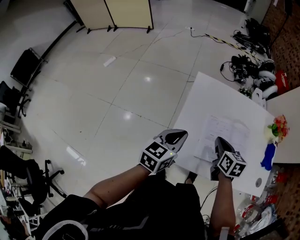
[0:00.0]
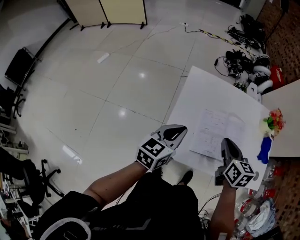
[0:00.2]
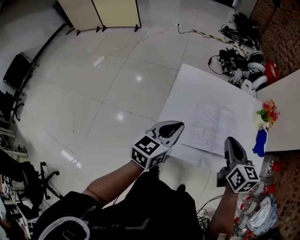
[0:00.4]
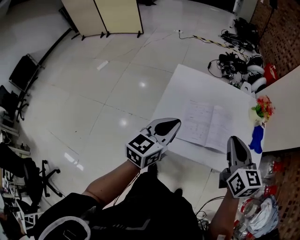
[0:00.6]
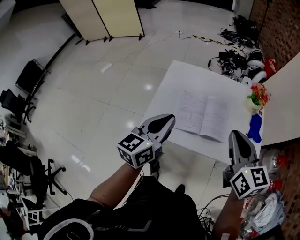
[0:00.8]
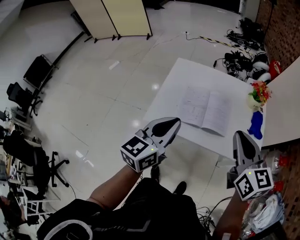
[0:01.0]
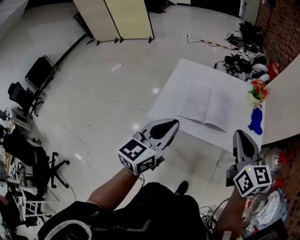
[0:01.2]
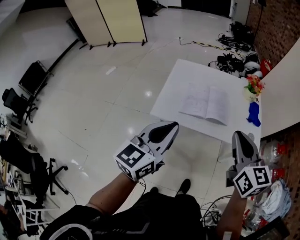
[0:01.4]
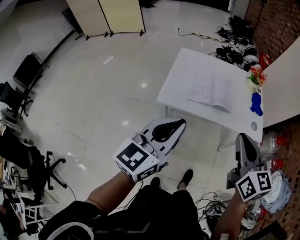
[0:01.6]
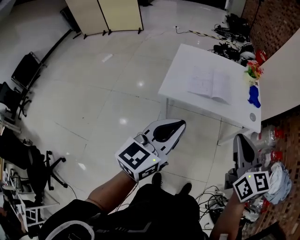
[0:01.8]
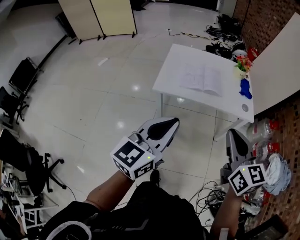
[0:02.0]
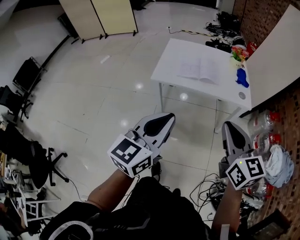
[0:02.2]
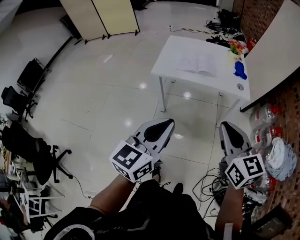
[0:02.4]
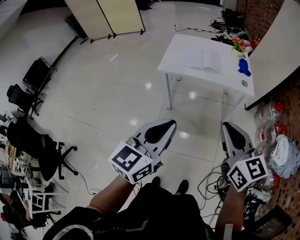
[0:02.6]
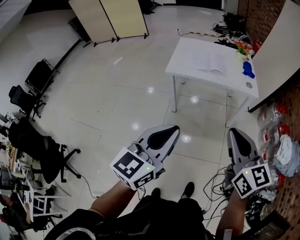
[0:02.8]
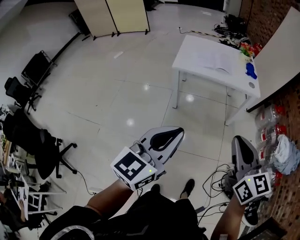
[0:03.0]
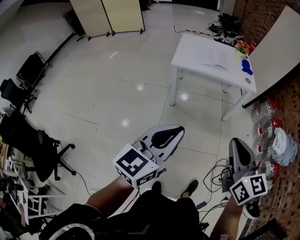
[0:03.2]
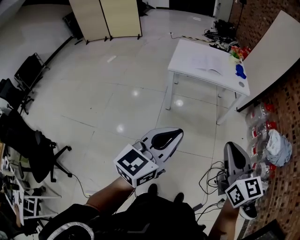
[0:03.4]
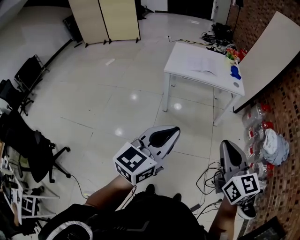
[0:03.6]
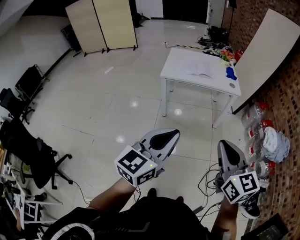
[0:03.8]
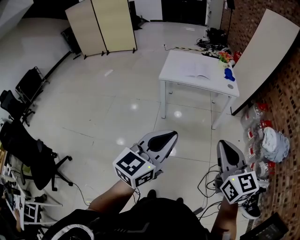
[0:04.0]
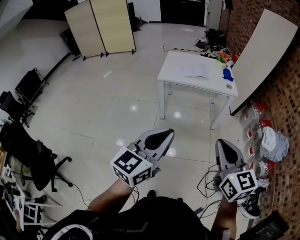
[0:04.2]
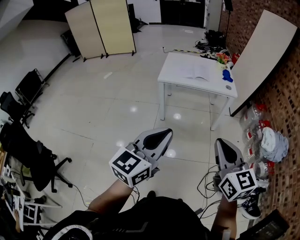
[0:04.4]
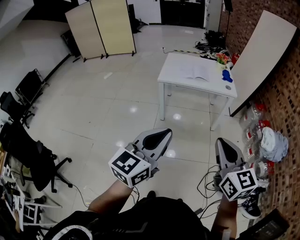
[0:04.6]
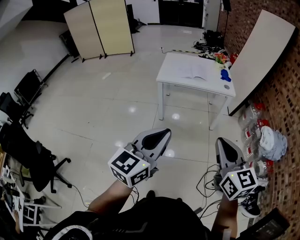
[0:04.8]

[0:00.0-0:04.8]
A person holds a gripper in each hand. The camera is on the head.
0:00.0 to 0:01.6: The right gripper is displaced backward, upward and to the right by some 50 cm, and swivels some 30 degrees. Meanwhile the left gripper moves backward and upward, some 40 cm, and turns by approximately 20 degrees.
0:01.6 to 0:03.2: Both grippers are carried backward, about 50 cm.
0:03.2 to 0:04.8: Both grippers move backward and to the right, approximately 10 cm.

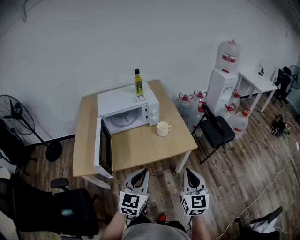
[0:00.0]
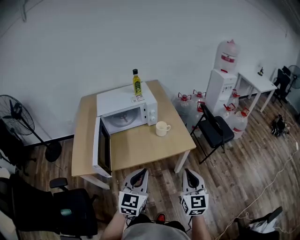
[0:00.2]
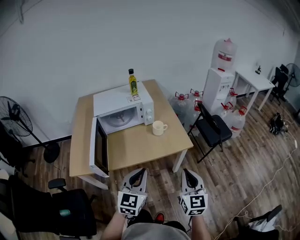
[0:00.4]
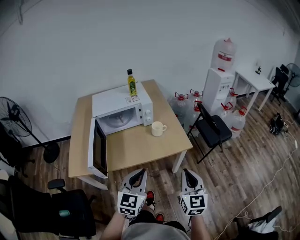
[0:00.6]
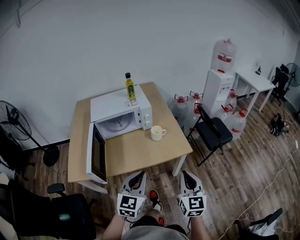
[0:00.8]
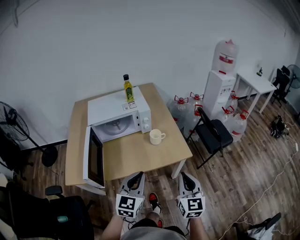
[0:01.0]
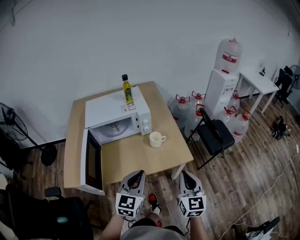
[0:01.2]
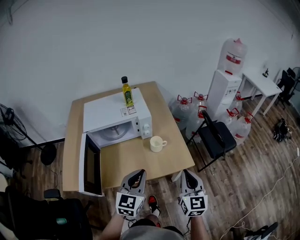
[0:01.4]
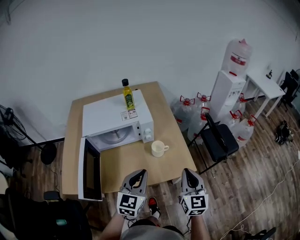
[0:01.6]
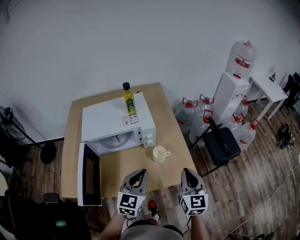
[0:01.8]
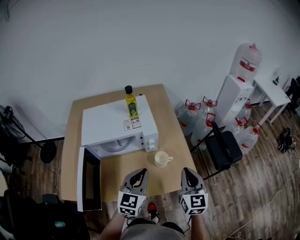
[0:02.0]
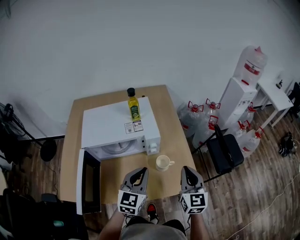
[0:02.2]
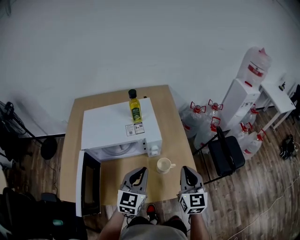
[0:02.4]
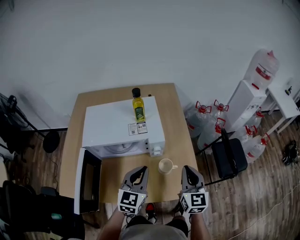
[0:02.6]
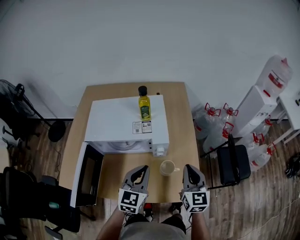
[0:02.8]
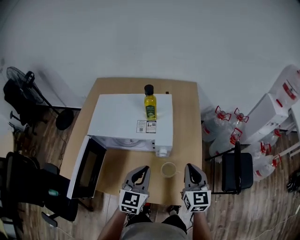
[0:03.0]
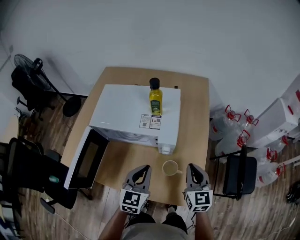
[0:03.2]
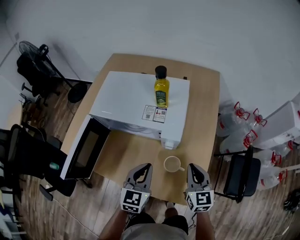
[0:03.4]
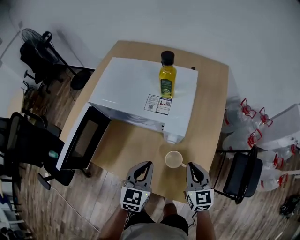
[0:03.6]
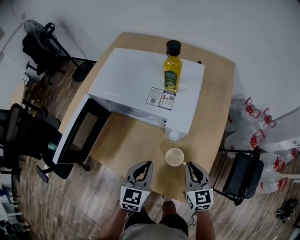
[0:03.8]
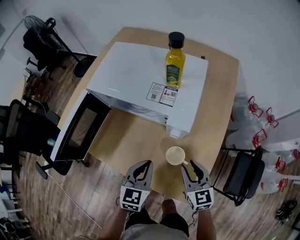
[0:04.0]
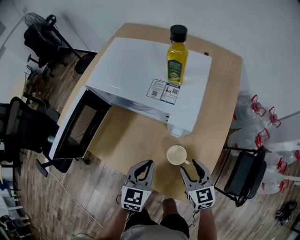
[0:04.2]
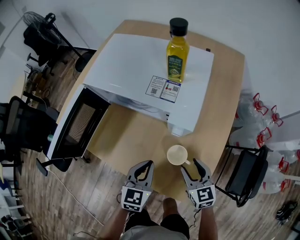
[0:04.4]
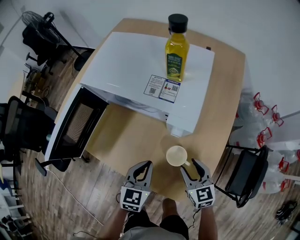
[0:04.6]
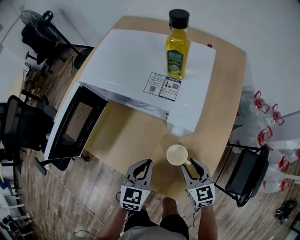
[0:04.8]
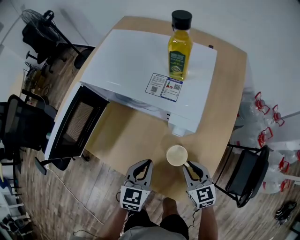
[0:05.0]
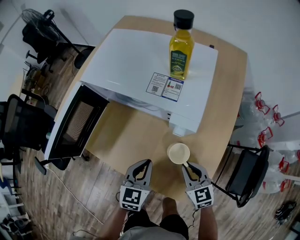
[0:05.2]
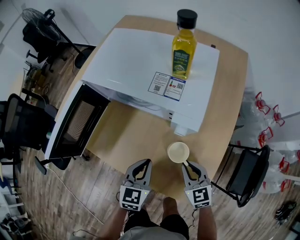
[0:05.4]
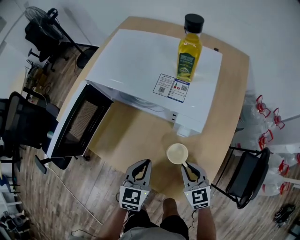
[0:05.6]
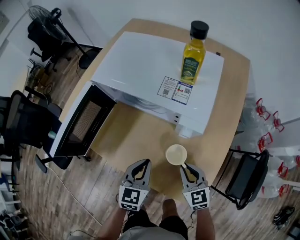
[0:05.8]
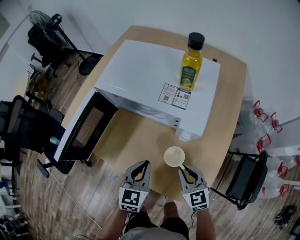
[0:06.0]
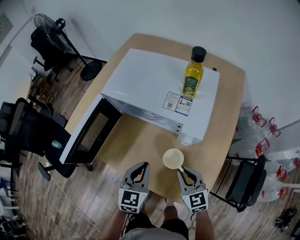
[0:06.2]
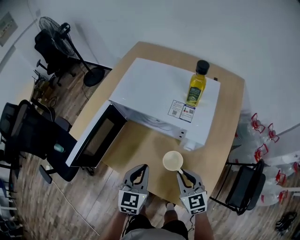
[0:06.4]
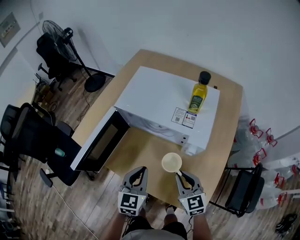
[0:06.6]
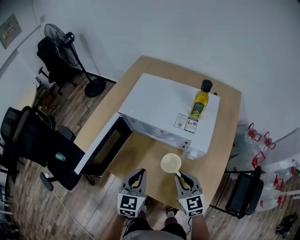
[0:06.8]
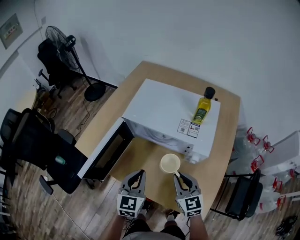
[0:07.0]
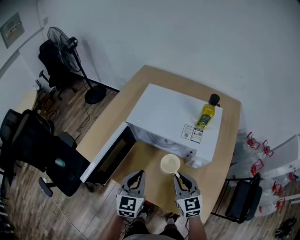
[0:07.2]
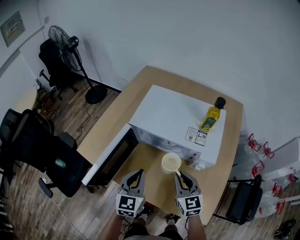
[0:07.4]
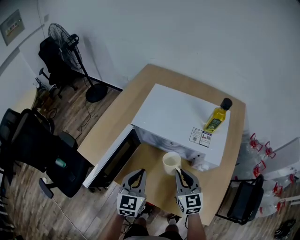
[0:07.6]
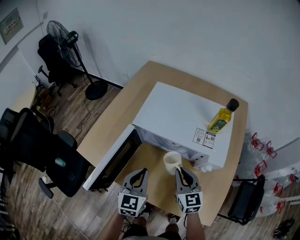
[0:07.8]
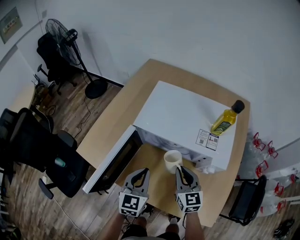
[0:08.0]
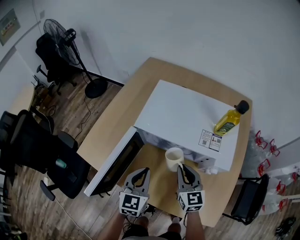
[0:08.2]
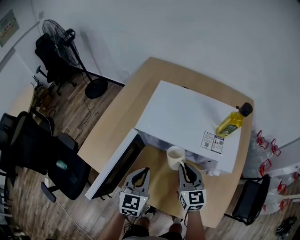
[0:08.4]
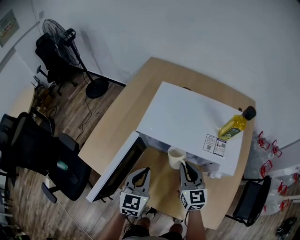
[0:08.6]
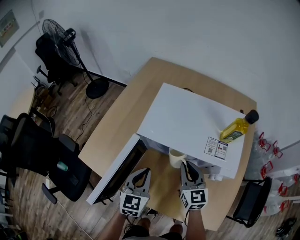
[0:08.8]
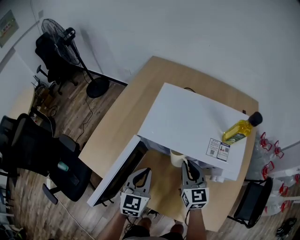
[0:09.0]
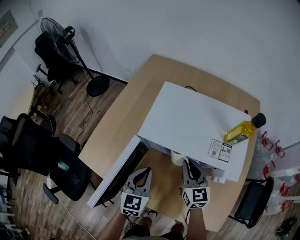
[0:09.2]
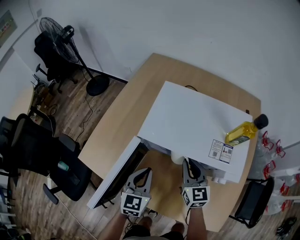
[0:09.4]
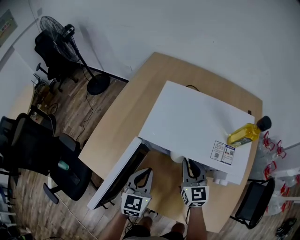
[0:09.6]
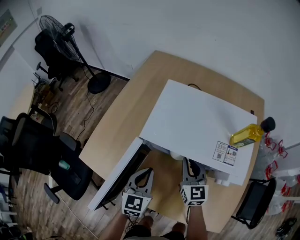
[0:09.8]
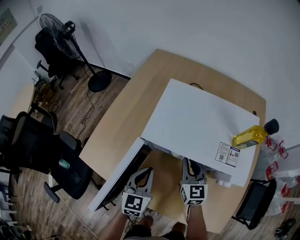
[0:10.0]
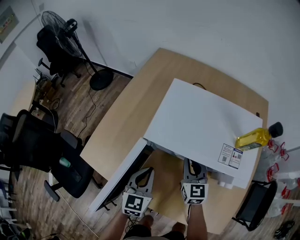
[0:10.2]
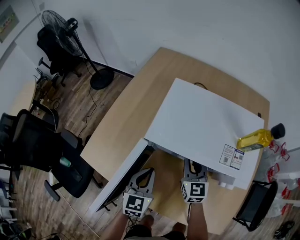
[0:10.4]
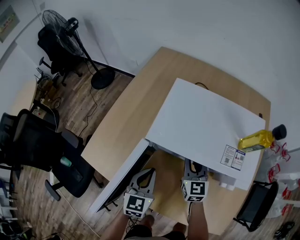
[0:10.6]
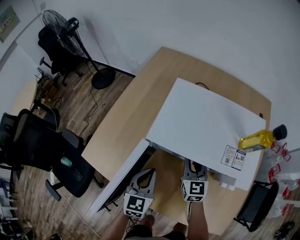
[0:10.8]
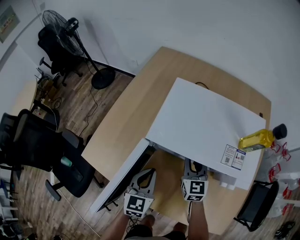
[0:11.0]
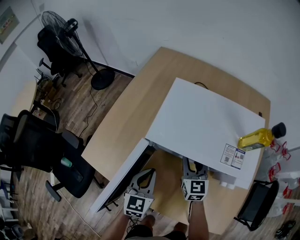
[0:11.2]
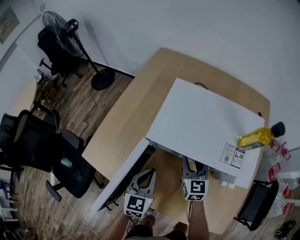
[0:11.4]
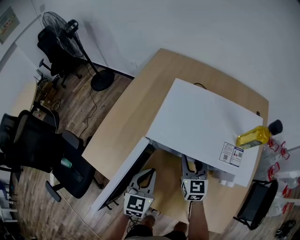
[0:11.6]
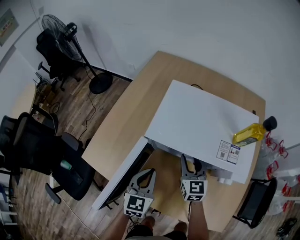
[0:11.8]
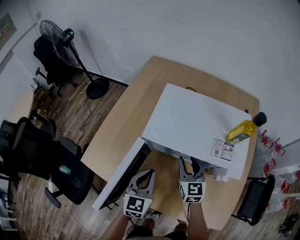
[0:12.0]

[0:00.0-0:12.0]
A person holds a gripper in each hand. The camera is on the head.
0:00.0 to 0:01.6: Both grippers move forward, approximately 20 cm.
0:01.6 to 0:03.0: Both grippers move forward, approximately 20 cm. The left gripper swivels about 20 degrees, while the right gripper changes its angle by roughly 20 degrees.
0:03.0 to 0:04.4: Both grippers travel together downward, approximately 20 cm. The left gripper rotates roughly 20 degrees. Meanwhile the right gripper changes its angle by approximately 40 degrees, and opens up.
0:04.4 to 0:06.0: The left gripper changes place by roughly 5 cm; the right gripper is displaced to the left by about 5 cm, and closes up.
0:06.0 to 0:07.6: The right gripper heads to the left, forward and upward, covering roughly 20 cm; the left gripper shifts some 20 cm to the left, upward and forward.
0:07.6 to 0:09.0: Both grippers move forward, roughly 10 cm.
0:09.0 to 0:10.4: The right gripper travels forward by some 5 cm.
0:10.4 to 0:12.0: The right gripper opens up.

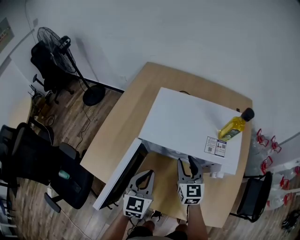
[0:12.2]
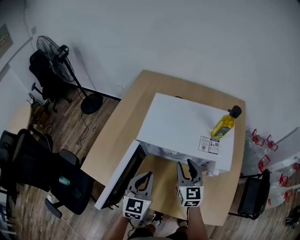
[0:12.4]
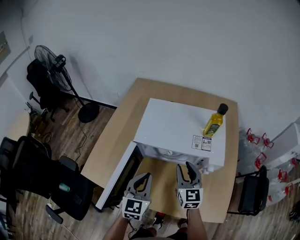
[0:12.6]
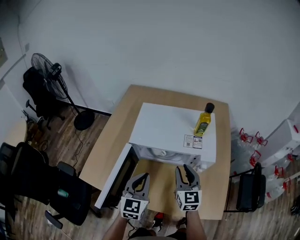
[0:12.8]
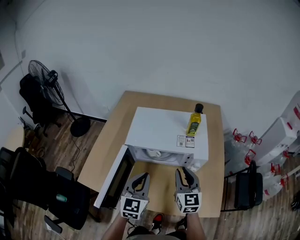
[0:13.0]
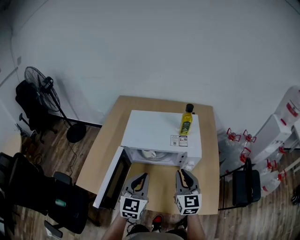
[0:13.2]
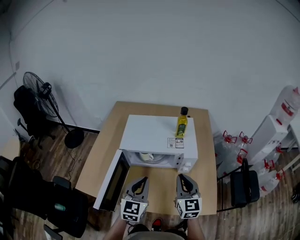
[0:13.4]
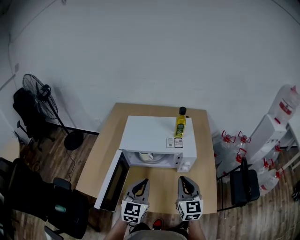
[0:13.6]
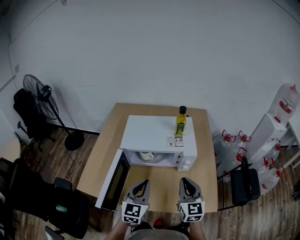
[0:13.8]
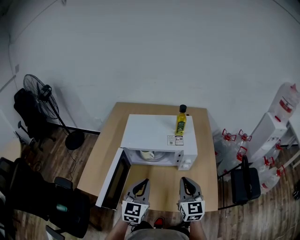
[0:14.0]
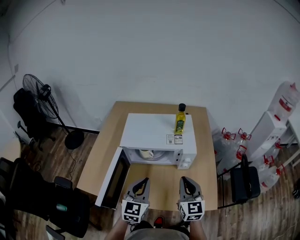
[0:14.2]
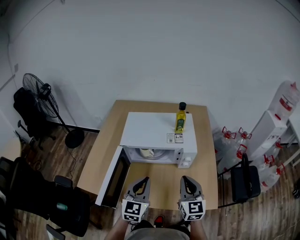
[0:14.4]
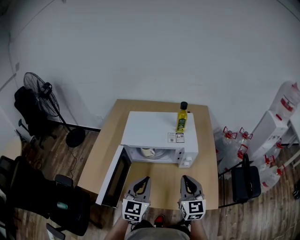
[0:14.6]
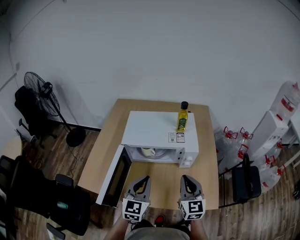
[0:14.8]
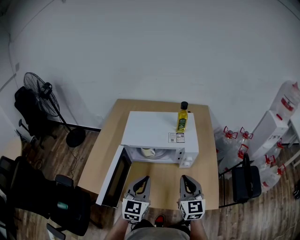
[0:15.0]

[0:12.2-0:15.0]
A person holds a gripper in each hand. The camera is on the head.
0:12.2 to 0:13.6: The left gripper heads upward, backward and to the right, covering about 15 cm; the right gripper goes roughly 25 cm backward, upward and to the right, and closes up.
0:13.6 to 0:15.0: There are only small adjustments of the grippers.

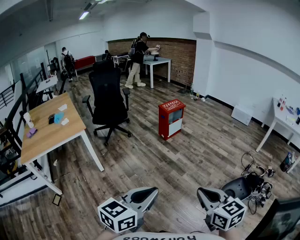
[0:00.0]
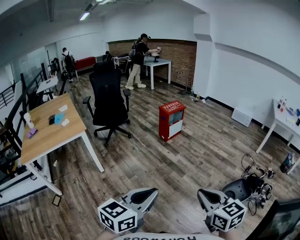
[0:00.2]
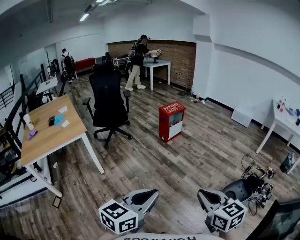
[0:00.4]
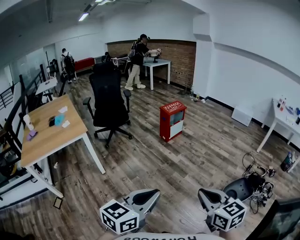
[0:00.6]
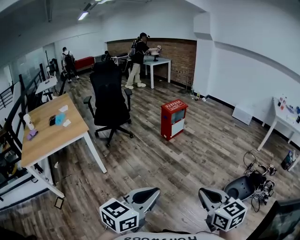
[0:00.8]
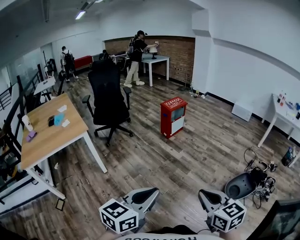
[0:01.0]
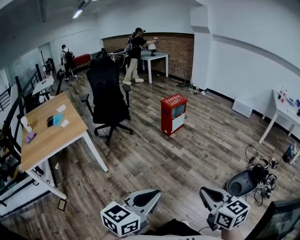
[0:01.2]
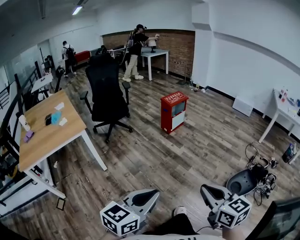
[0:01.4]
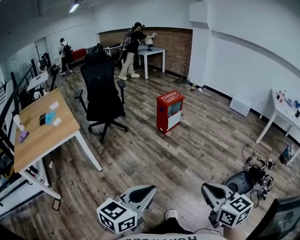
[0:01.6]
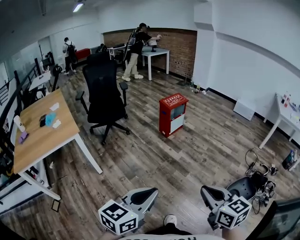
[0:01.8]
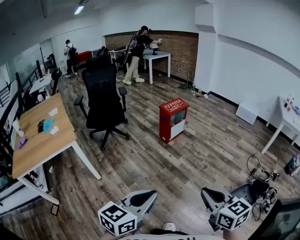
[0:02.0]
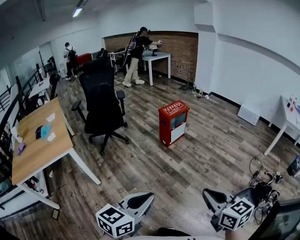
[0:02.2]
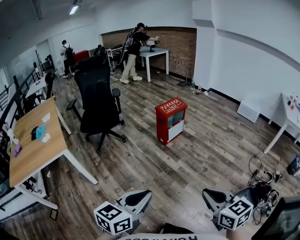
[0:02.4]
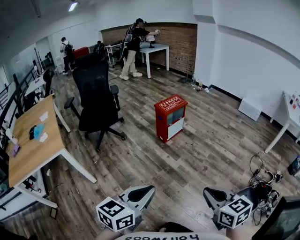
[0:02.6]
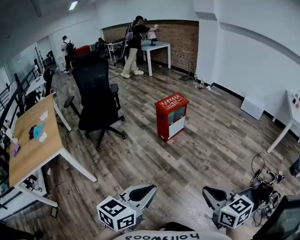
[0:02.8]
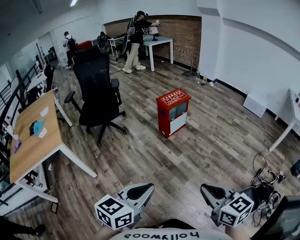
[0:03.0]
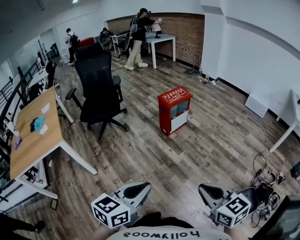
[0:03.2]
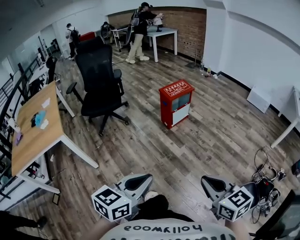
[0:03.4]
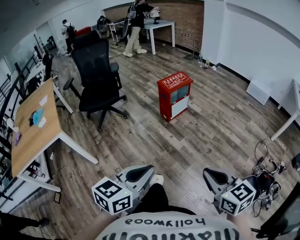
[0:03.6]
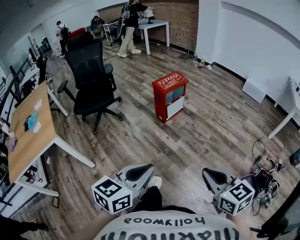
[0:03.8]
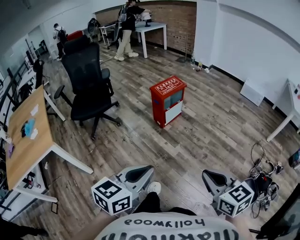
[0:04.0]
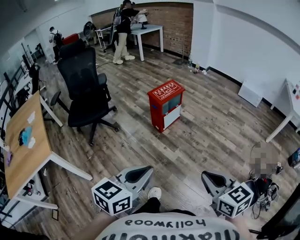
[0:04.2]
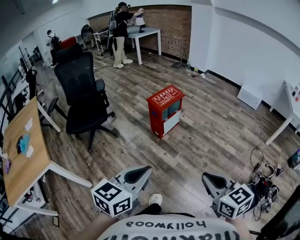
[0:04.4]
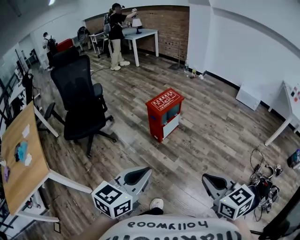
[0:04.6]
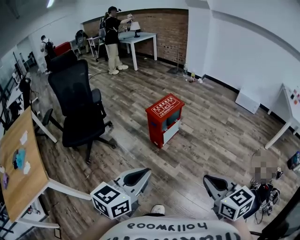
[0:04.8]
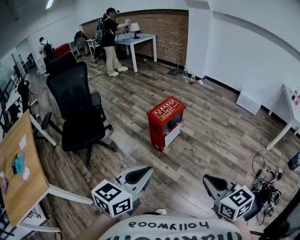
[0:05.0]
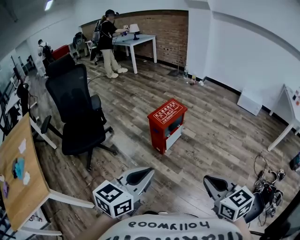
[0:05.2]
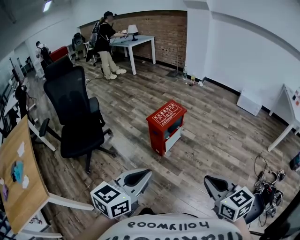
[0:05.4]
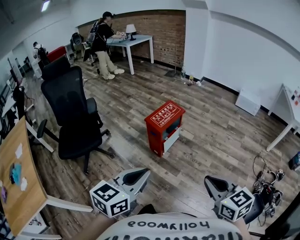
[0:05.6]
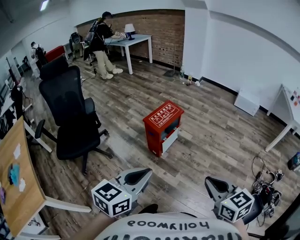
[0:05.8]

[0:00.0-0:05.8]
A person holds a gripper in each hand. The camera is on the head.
0:00.0 to 0:01.4: The grippers both shift to the left by about 5 cm.
0:01.4 to 0:02.8: Both grippers move forward, about 30 cm.
0:02.8 to 0:04.4: Both grippers travel together forward, roughly 20 cm.
0:04.4 to 0:05.8: Both grippers move forward, about 20 cm.
